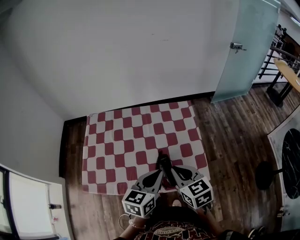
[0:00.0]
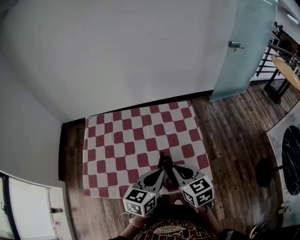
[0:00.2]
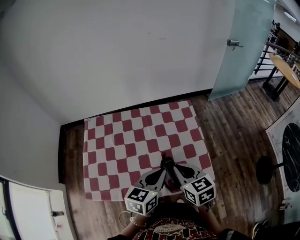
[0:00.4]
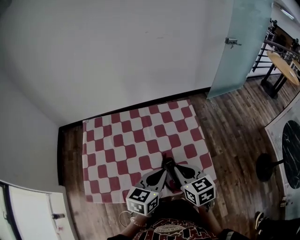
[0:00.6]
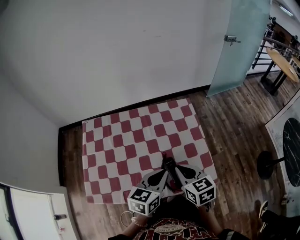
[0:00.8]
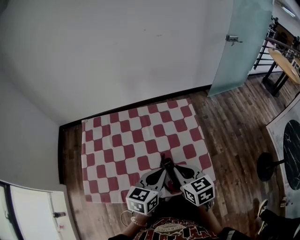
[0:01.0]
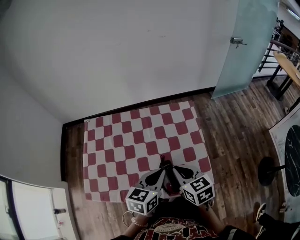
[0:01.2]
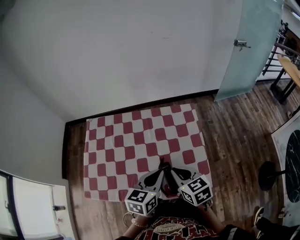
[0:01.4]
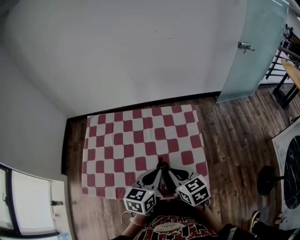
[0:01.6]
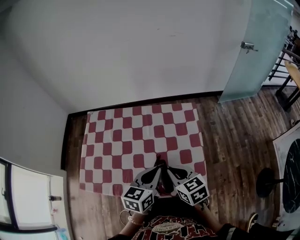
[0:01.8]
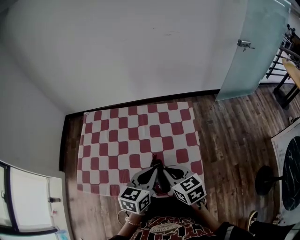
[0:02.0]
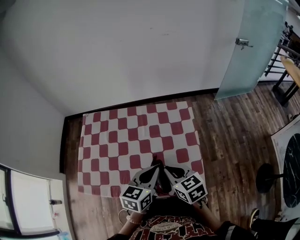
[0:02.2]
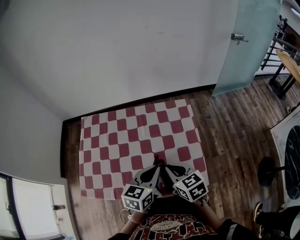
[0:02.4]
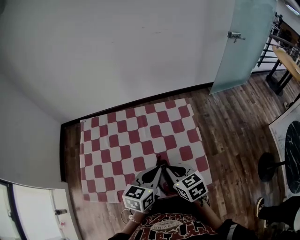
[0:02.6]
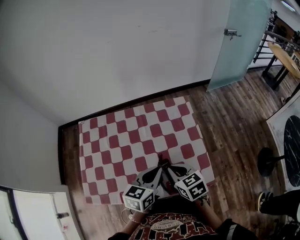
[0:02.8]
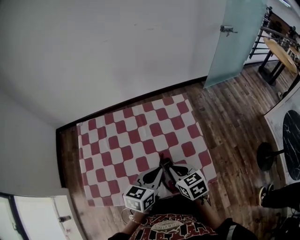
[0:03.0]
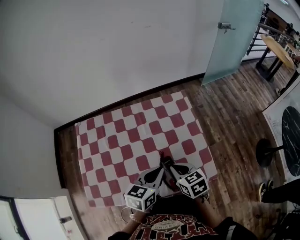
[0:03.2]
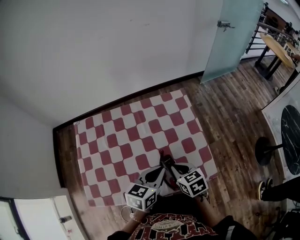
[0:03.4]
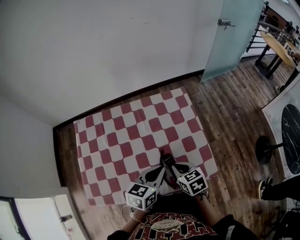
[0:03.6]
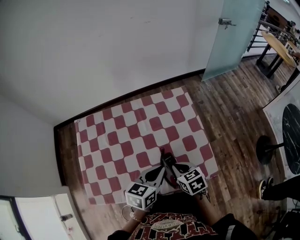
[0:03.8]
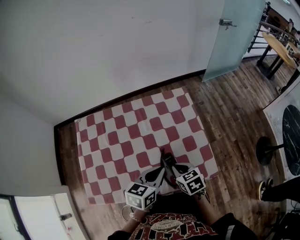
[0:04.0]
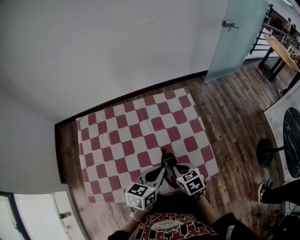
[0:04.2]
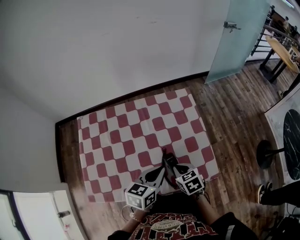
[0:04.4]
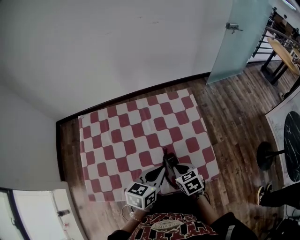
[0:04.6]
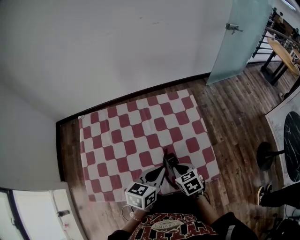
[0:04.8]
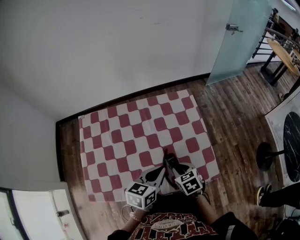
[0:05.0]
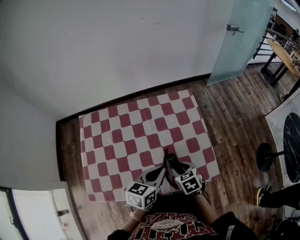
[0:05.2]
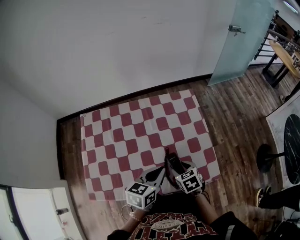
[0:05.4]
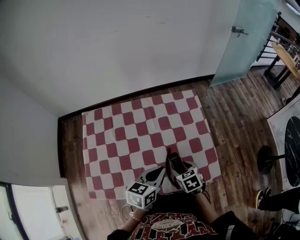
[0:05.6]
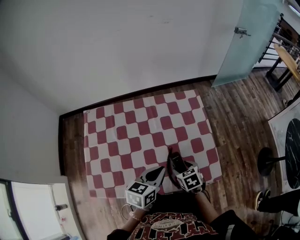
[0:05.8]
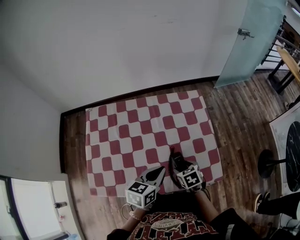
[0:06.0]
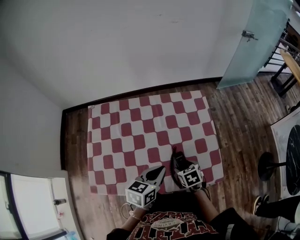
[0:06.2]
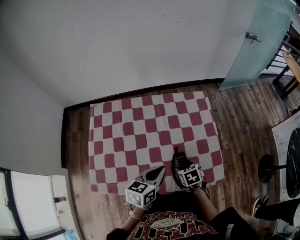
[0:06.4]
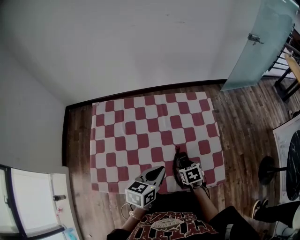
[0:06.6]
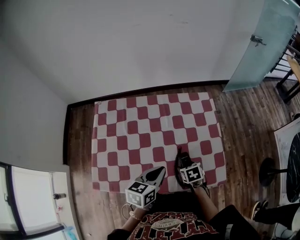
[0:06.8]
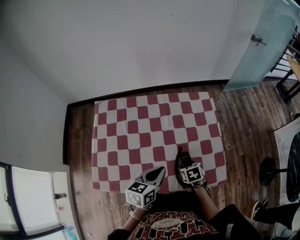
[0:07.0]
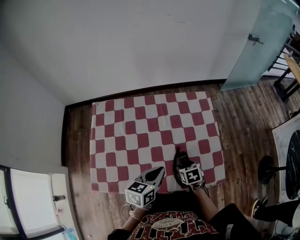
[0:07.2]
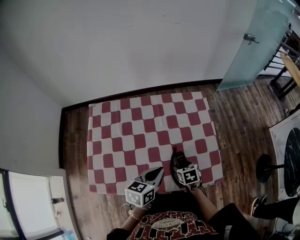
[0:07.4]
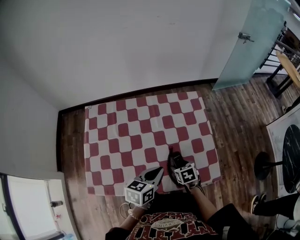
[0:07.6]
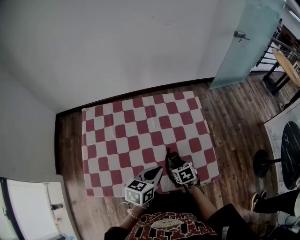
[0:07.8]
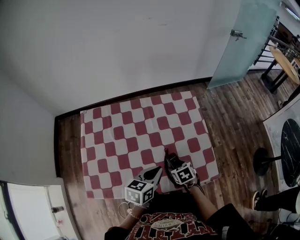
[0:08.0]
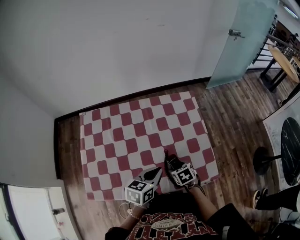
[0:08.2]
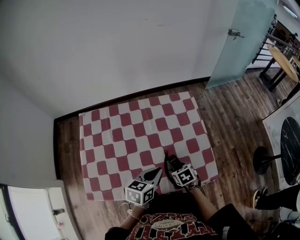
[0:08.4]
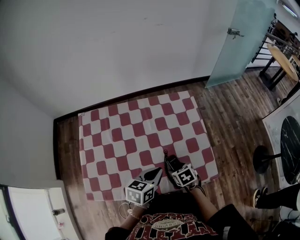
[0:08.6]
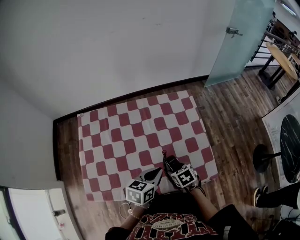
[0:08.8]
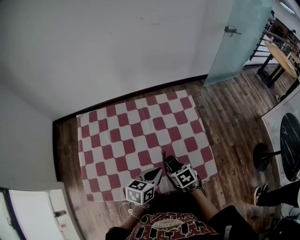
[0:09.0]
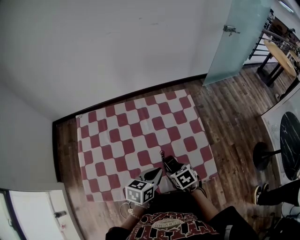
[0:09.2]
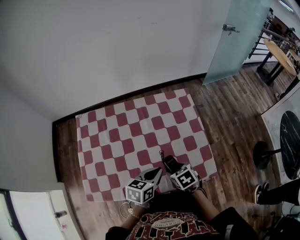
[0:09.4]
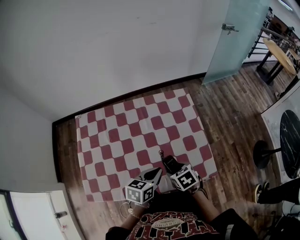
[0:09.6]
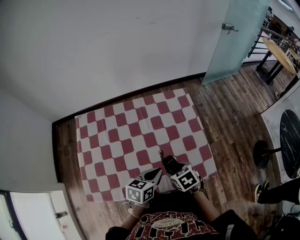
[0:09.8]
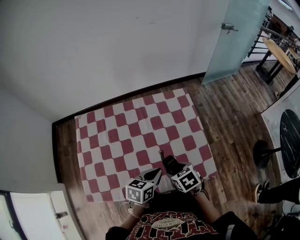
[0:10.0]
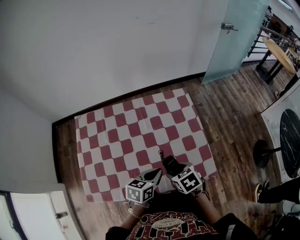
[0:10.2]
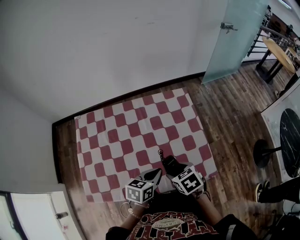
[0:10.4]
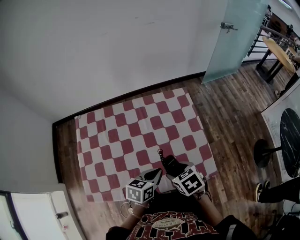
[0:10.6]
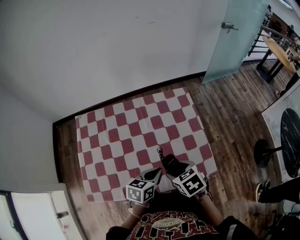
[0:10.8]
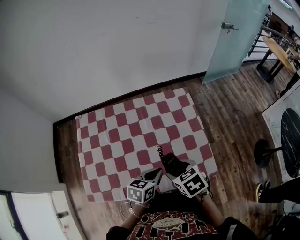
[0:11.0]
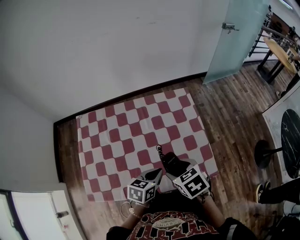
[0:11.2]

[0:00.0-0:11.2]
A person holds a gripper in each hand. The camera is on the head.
0:00.0 to 0:01.6: The right gripper moves roughly 5 cm, while the left gripper shifts about 5 cm forward.
0:01.6 to 0:03.2: The right gripper heads downward, covering approximately 5 cm.
0:03.2 to 0:04.8: The right gripper travels downward by roughly 5 cm.
0:04.8 to 0:06.4: The right gripper goes roughly 5 cm downward, and opens its fingers.
0:06.4 to 0:08.0: The grippers stay close to where they were, moving slightly.
0:08.0 to 0:09.6: The right gripper travels upward by some 5 cm.
0:09.6 to 0:11.2: The right gripper goes some 10 cm upward.

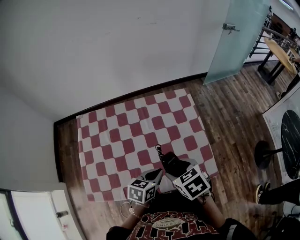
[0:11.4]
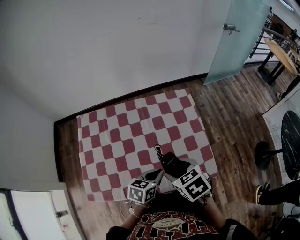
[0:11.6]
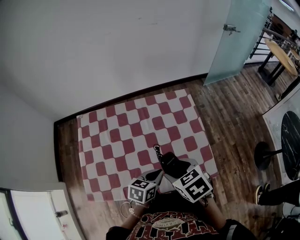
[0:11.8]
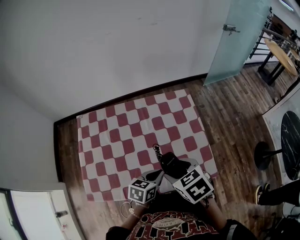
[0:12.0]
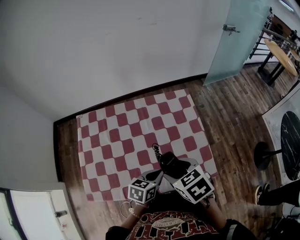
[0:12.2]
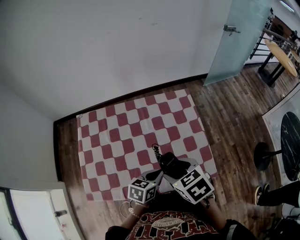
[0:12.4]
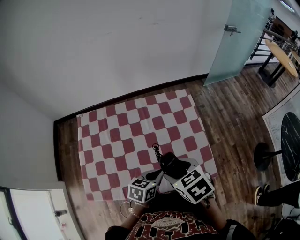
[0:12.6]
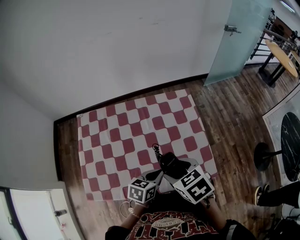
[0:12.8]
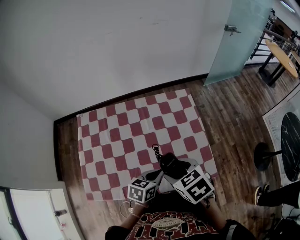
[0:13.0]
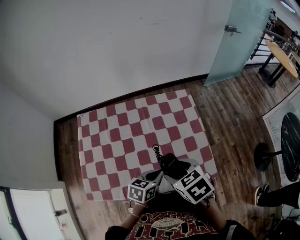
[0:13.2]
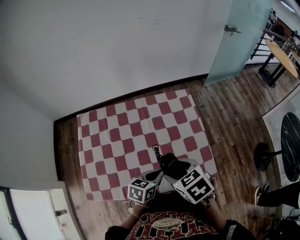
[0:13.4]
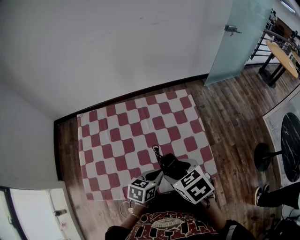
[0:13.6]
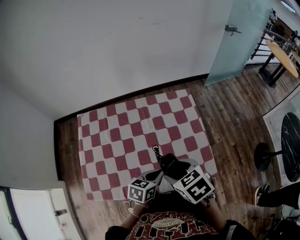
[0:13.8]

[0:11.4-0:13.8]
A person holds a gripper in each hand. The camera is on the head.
0:11.4 to 0:12.6: The grippers make only small movements.
0:12.6 to 0:13.8: The two grippers keep their place.

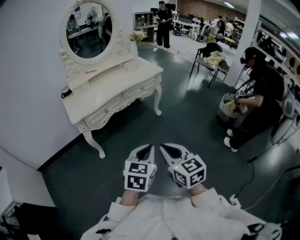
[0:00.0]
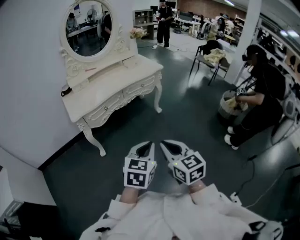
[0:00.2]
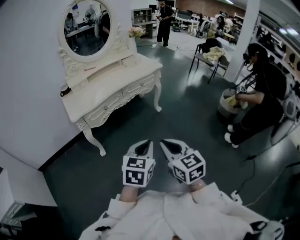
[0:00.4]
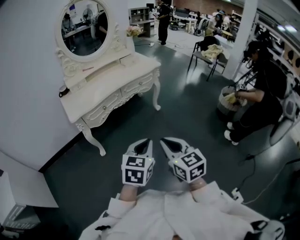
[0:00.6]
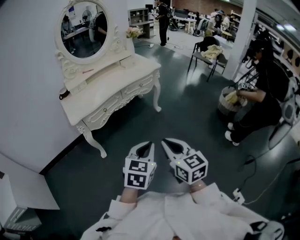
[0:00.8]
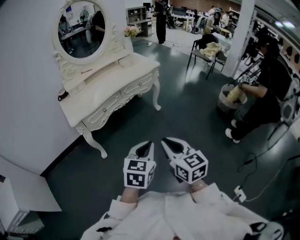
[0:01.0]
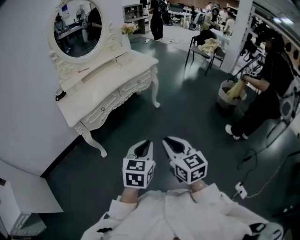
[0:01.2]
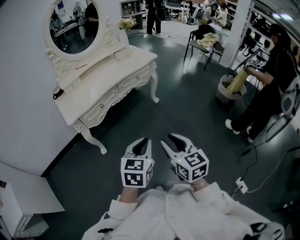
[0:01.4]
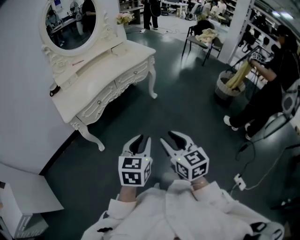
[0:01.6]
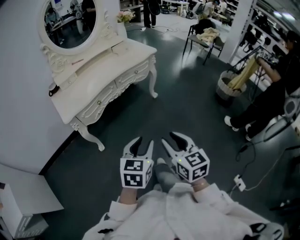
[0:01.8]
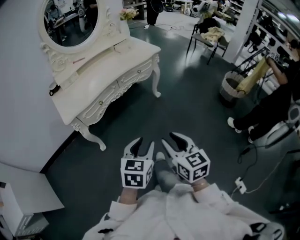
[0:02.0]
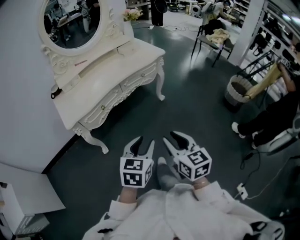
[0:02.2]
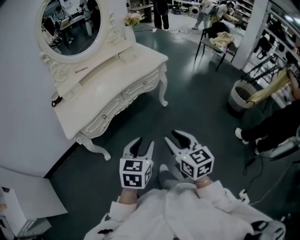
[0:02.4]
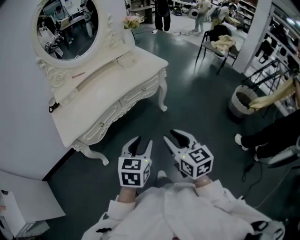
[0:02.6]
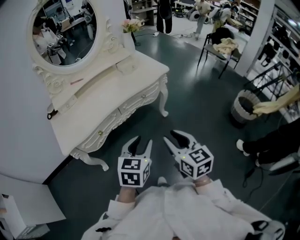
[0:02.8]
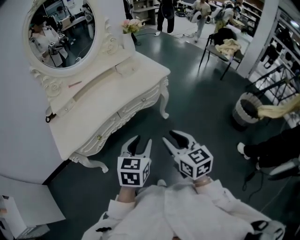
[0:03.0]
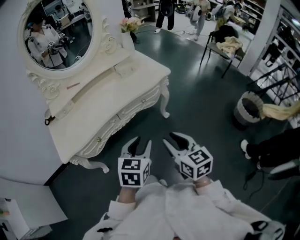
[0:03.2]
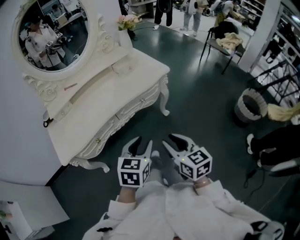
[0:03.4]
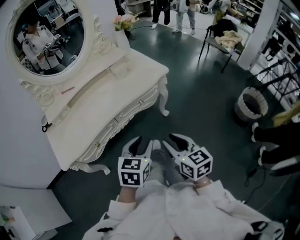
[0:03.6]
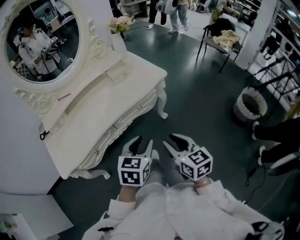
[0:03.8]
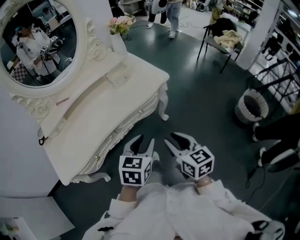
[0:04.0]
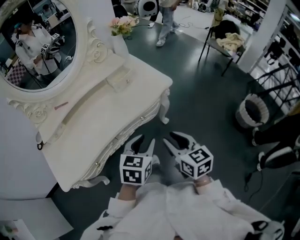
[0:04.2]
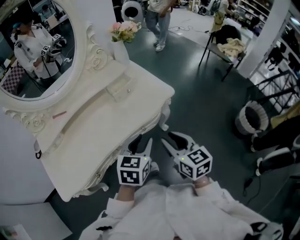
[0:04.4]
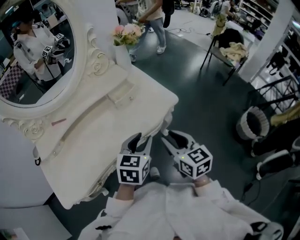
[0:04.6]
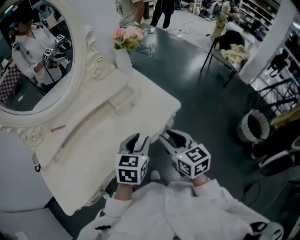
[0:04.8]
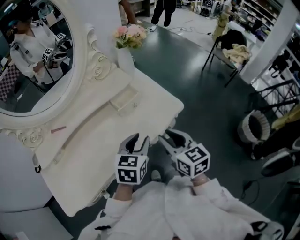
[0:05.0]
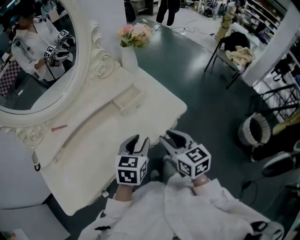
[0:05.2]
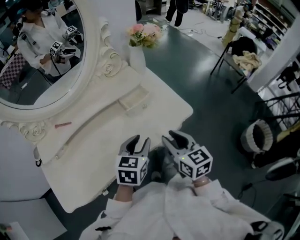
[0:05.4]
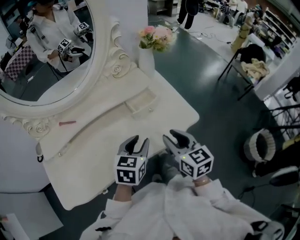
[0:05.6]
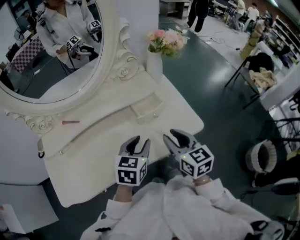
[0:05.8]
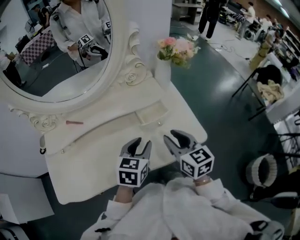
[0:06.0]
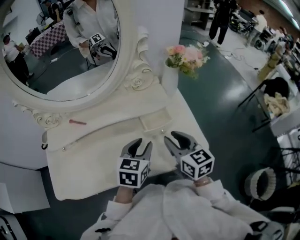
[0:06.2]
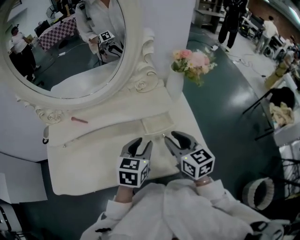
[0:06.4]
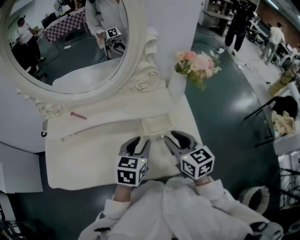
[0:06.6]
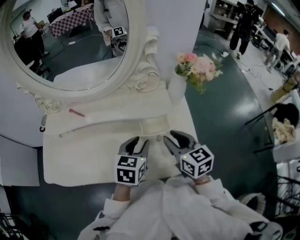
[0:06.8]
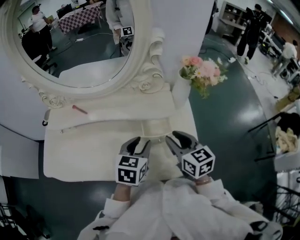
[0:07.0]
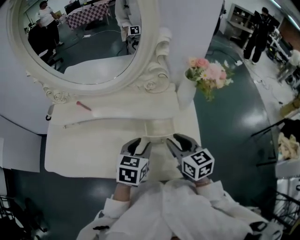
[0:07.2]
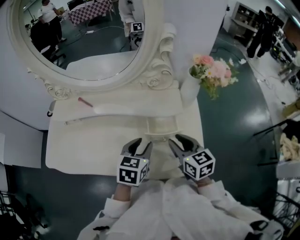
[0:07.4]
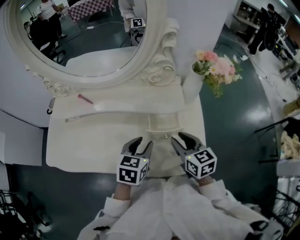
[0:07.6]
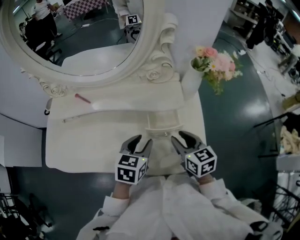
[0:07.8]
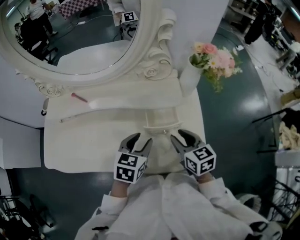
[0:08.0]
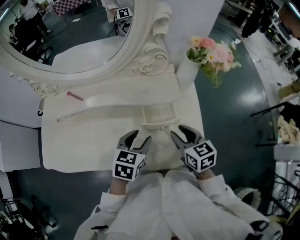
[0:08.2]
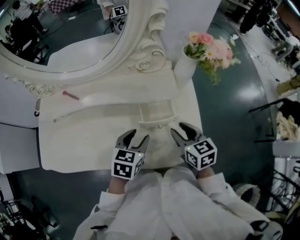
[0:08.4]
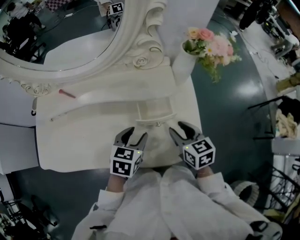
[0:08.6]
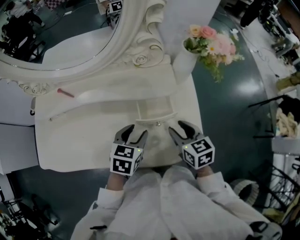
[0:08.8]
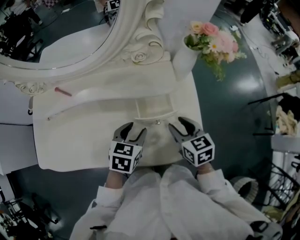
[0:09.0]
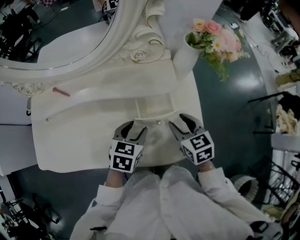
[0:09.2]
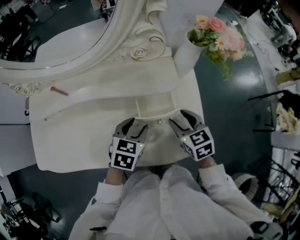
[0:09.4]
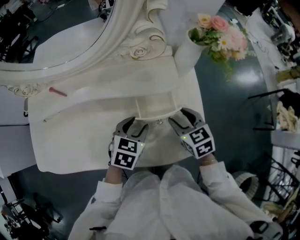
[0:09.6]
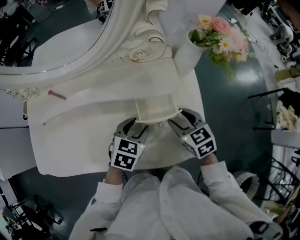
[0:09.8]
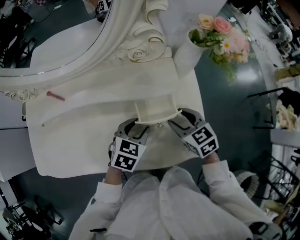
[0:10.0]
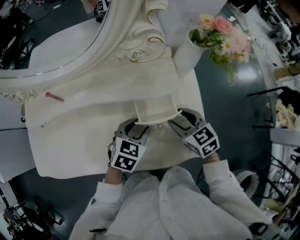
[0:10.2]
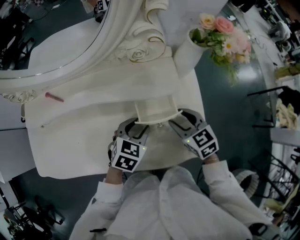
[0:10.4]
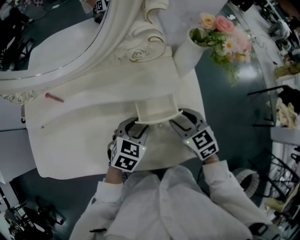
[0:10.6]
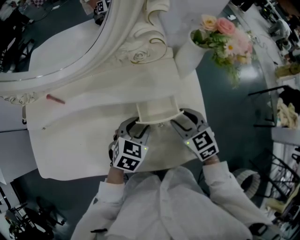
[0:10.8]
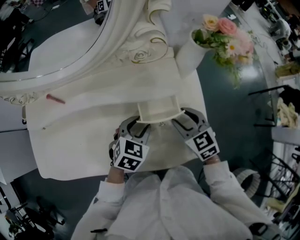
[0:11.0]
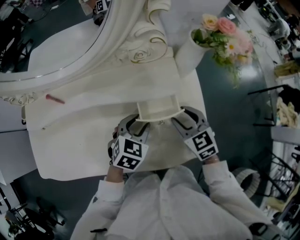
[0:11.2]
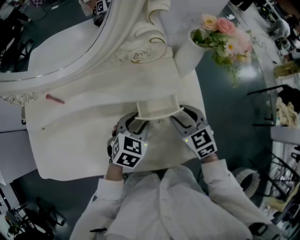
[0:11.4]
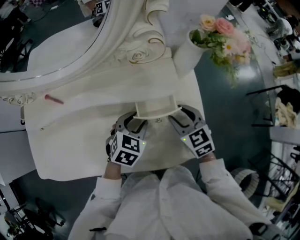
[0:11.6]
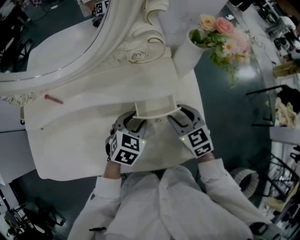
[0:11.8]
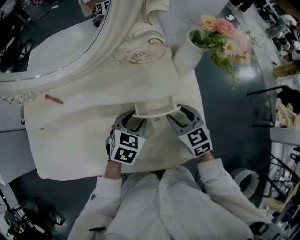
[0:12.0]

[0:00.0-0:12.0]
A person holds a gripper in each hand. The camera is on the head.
0:00.0 to 0:01.6: The right gripper opens up. Meanwhile the left gripper ends up about 5 cm from where it was.
0:01.6 to 0:03.0: Both grippers move forward, some 30 cm.
0:03.0 to 0:04.4: Both grippers travel together forward, approximately 25 cm.
0:04.4 to 0:06.0: The right gripper goes about 25 cm forward. Meanwhile the left gripper moves forward and to the left, roughly 20 cm.
0:06.0 to 0:07.6: The right gripper shifts about 10 cm forward and downward, and swivels approximately 20 degrees, while the left gripper shifts by some 5 cm, and changes its angle by approximately 20 degrees.
0:07.6 to 0:09.0: The right gripper ends up some 5 cm from where it was; the left gripper ends up roughly 5 cm from where it was.
0:09.0 to 0:10.4: The grippers make only small movements.
0:10.4 to 0:12.0: There are only small adjustments of the grippers.
